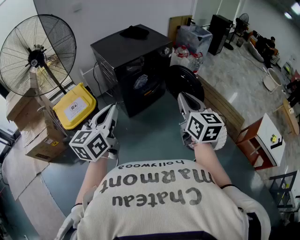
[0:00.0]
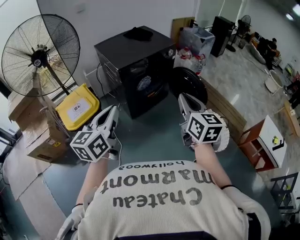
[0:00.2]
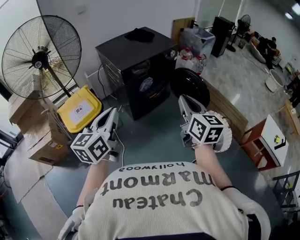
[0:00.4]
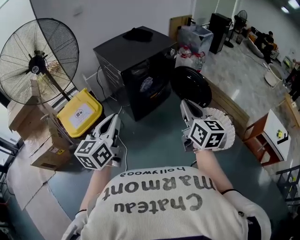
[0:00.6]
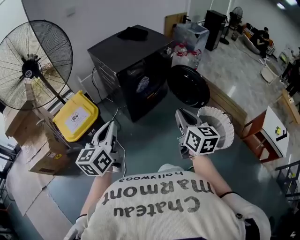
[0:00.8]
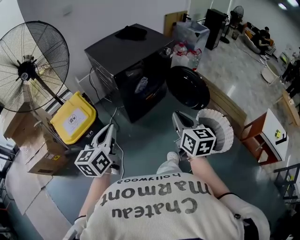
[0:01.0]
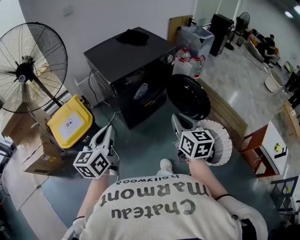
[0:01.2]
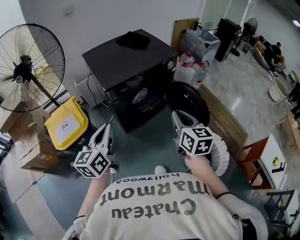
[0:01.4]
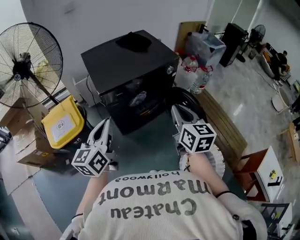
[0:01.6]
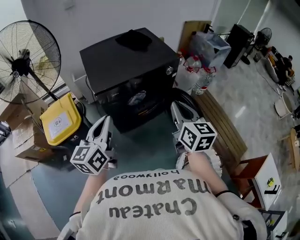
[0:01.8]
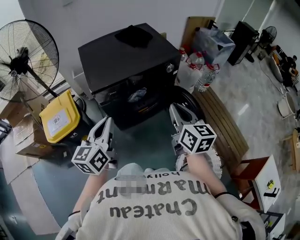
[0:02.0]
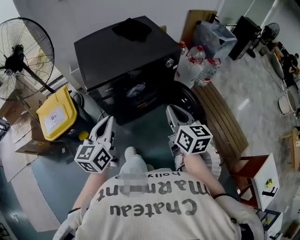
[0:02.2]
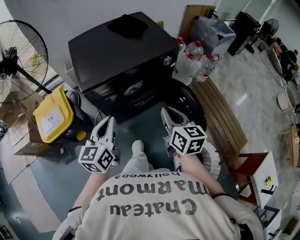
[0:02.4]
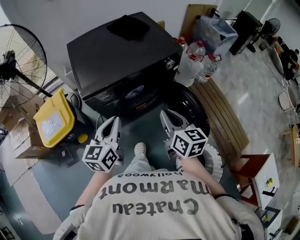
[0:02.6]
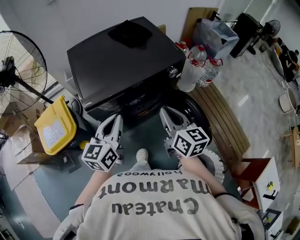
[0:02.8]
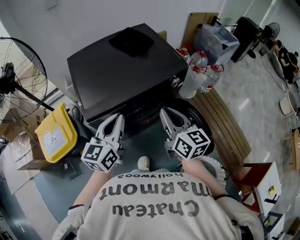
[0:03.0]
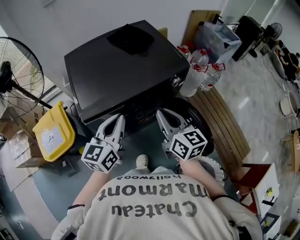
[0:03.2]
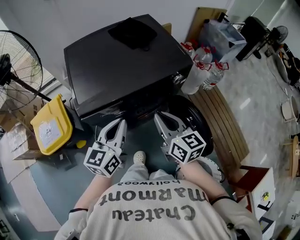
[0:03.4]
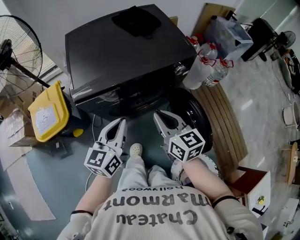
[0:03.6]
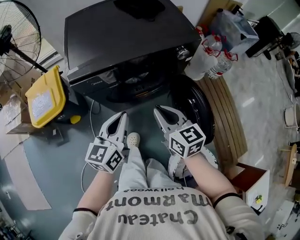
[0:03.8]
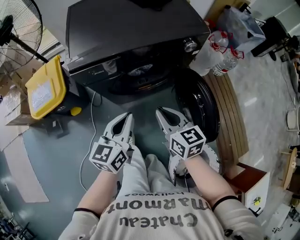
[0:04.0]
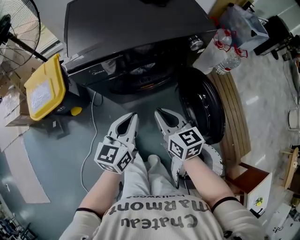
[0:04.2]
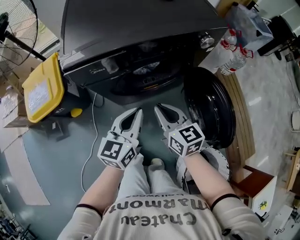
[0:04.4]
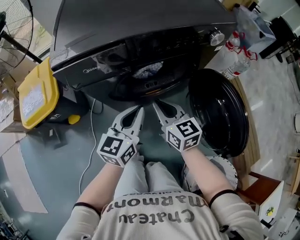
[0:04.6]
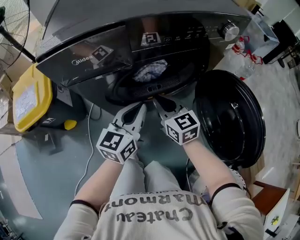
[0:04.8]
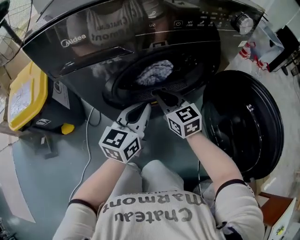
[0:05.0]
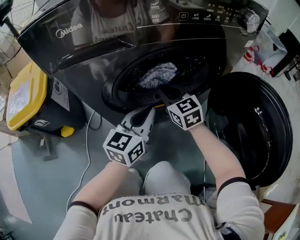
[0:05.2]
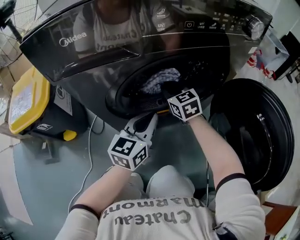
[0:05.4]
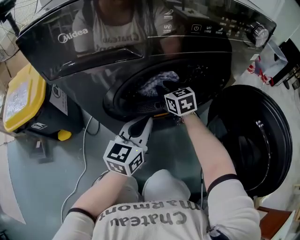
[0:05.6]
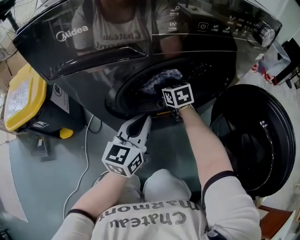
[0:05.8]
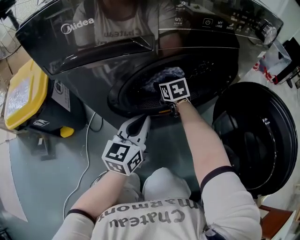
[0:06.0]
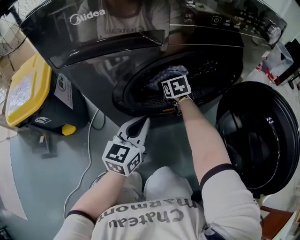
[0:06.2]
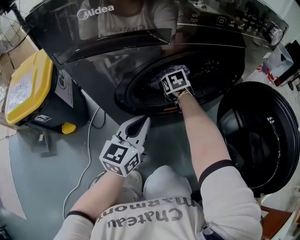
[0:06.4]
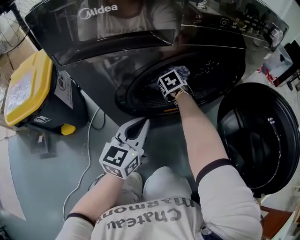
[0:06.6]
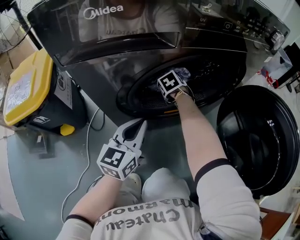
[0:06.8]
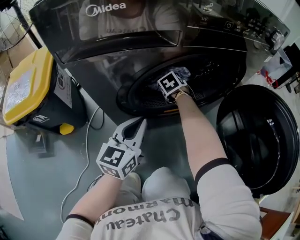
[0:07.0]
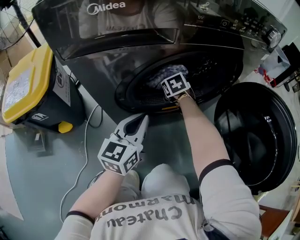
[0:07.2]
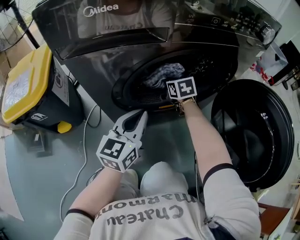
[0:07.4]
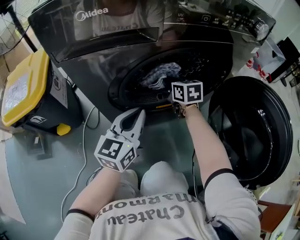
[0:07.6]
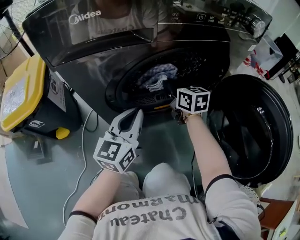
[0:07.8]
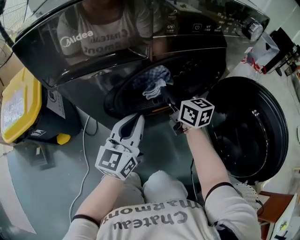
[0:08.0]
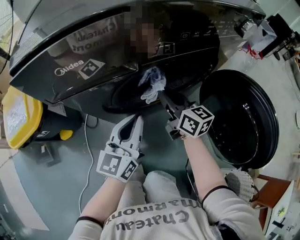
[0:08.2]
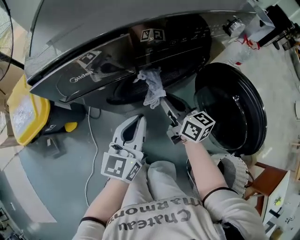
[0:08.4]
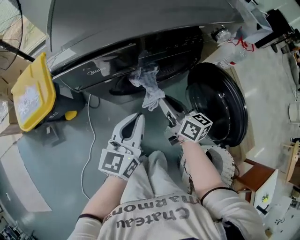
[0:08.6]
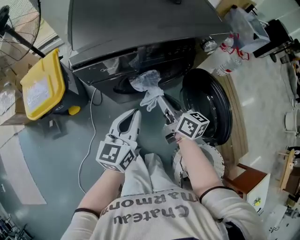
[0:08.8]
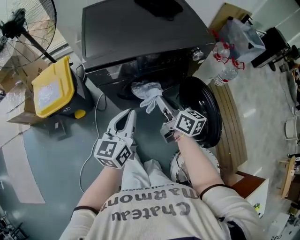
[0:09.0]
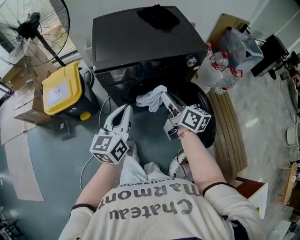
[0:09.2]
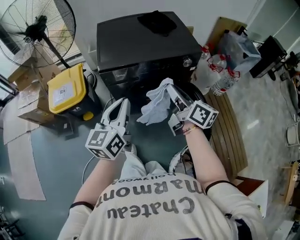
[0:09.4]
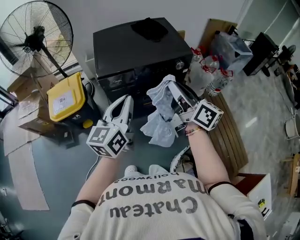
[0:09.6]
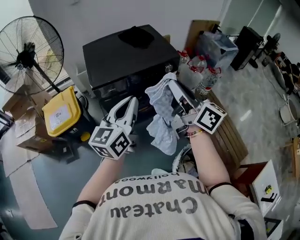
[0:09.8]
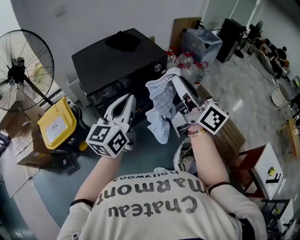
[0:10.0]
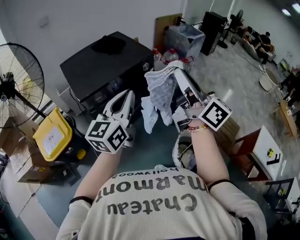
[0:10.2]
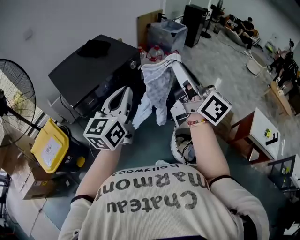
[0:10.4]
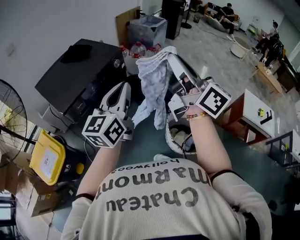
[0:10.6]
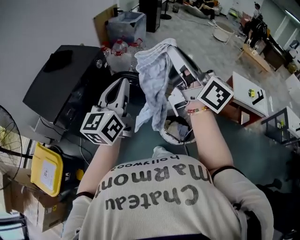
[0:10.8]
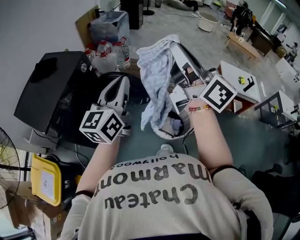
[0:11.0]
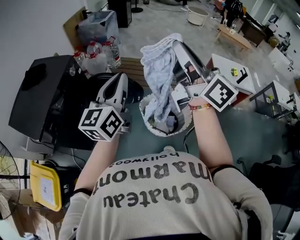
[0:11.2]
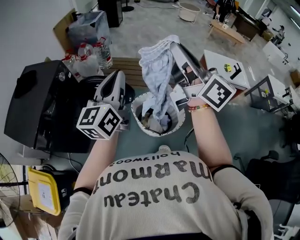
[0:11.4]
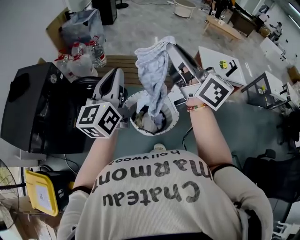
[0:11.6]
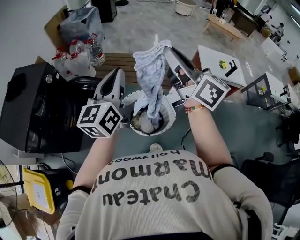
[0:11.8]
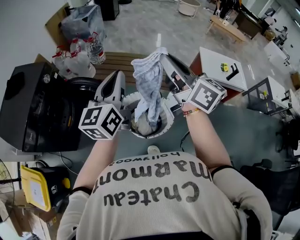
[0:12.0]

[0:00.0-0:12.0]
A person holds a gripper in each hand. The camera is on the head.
0:00.0 to 0:01.6: Both grippers travel together forward, about 25 cm.
0:01.6 to 0:03.0: The right gripper travels forward by about 20 cm; the left gripper heads forward and to the right, covering about 20 cm.
0:03.0 to 0:04.4: The two grippers go some 25 cm downward. The right gripper rotates approximately 20 degrees.
0:04.4 to 0:06.0: The left gripper is displaced downward and forward by roughly 30 cm. Meanwhile the right gripper travels downward and forward by roughly 40 cm, swivels approximately 20 degrees, and opens up.
0:06.0 to 0:07.6: The right gripper goes some 5 cm upward, and closes up.
0:07.6 to 0:09.0: The left gripper shifts some 30 cm upward, while the right gripper moves upward and backward, some 40 cm, and swivels roughly 40 degrees.
0:09.0 to 0:10.4: The right gripper goes some 40 cm upward, and tips its fingers upward by about 40 degrees. Meanwhile the left gripper shifts roughly 25 cm upward, and swivels some 40 degrees.
0:10.4 to 0:12.0: The left gripper shifts by roughly 40 cm, and turns by some 20 degrees. Meanwhile the right gripper changes place by roughly 40 cm, and swivels approximately 30 degrees.

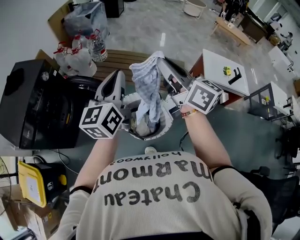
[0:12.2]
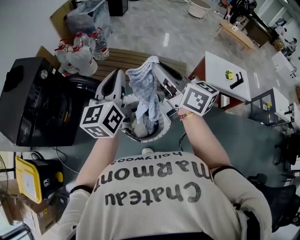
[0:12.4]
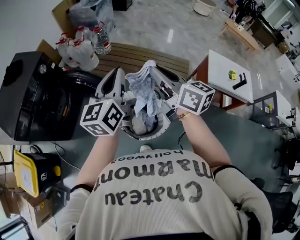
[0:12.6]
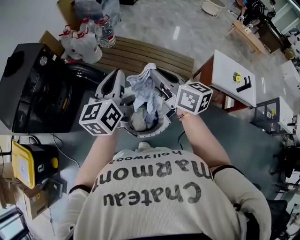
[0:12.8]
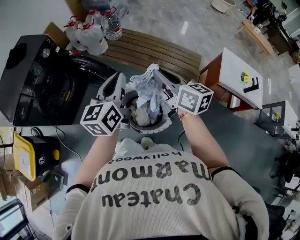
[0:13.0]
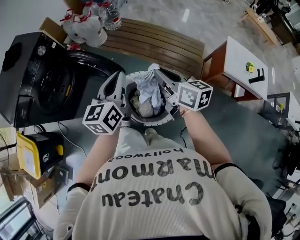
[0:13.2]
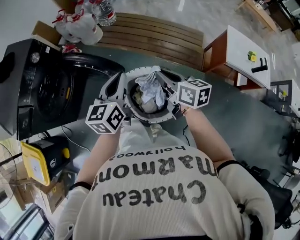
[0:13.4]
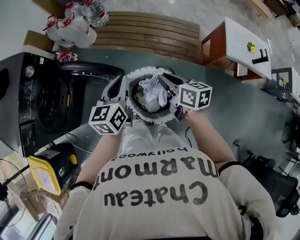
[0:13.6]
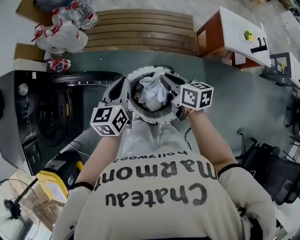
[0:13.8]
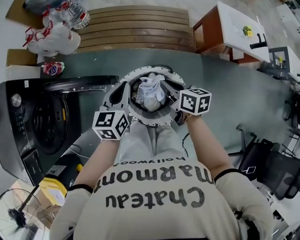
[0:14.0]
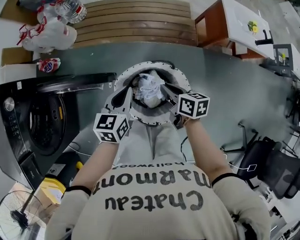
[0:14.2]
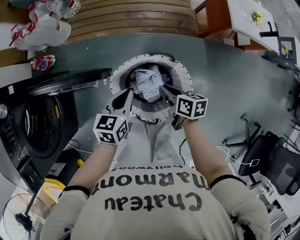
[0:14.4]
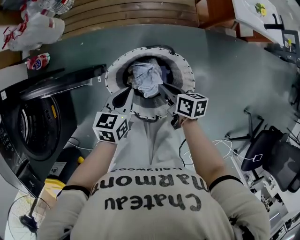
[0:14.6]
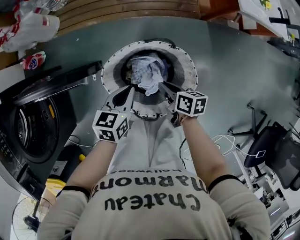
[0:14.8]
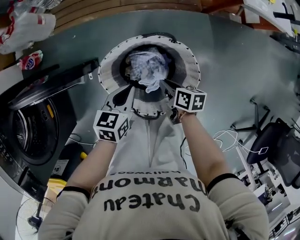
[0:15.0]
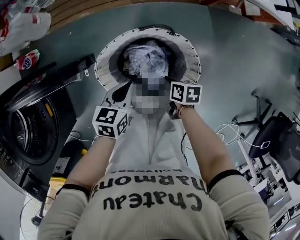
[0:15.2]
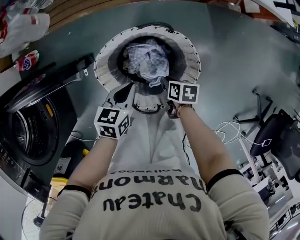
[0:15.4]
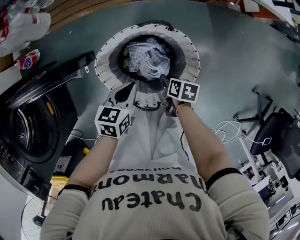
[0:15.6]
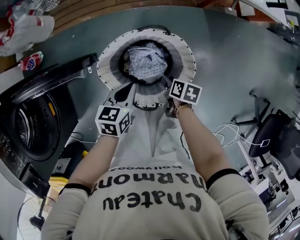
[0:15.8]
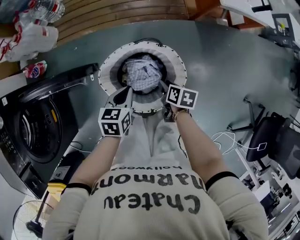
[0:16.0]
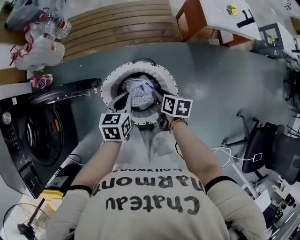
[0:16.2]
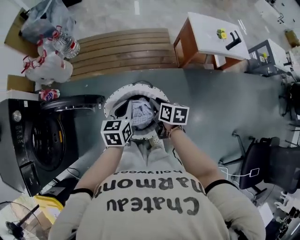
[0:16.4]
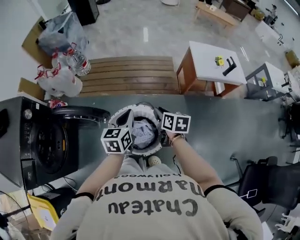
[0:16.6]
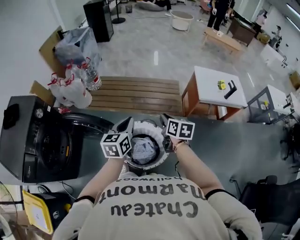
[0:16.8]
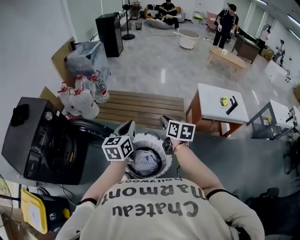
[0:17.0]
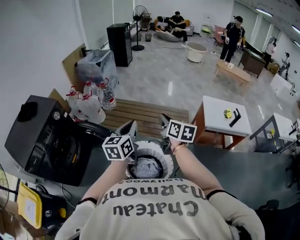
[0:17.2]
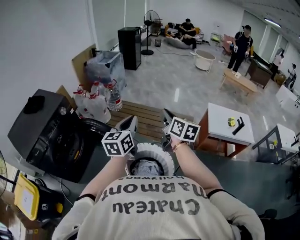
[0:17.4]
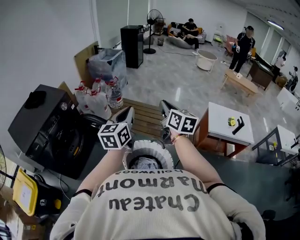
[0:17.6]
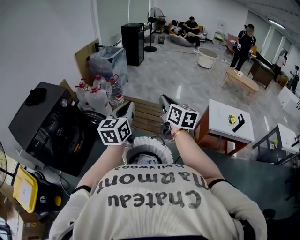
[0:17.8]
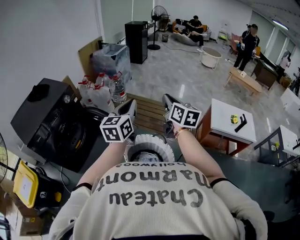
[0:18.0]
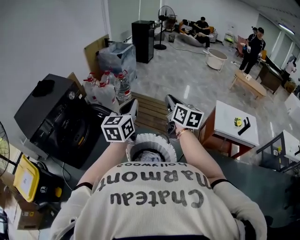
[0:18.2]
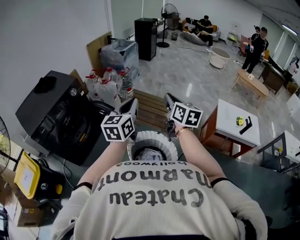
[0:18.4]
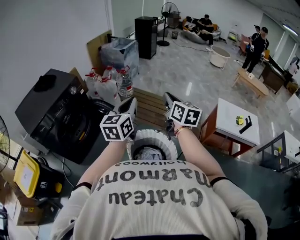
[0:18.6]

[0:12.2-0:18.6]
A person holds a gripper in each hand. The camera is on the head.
0:12.2 to 0:13.8: The left gripper moves downward and forward, roughly 30 cm, and swivels some 30 degrees. Meanwhile the right gripper moves downward, roughly 35 cm, and points its fingers about 40 degrees further downward.
0:13.8 to 0:15.4: The grippers both shift downward by about 30 cm. The right gripper tips its fingers downward by about 30 degrees. The left gripper changes its angle by approximately 40 degrees.
0:15.4 to 0:17.0: The two grippers go roughly 40 cm upward. The right gripper tilts its fingers approximately 40 degrees upward, and opens and closes again. The left gripper points its fingers some 30 degrees further upward.
0:17.0 to 0:18.6: Both grippers travel together upward and to the left, about 15 cm. The left gripper swivels approximately 20 degrees; the right gripper swivels approximately 20 degrees.

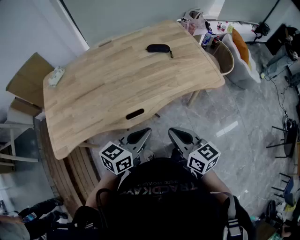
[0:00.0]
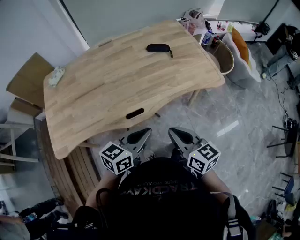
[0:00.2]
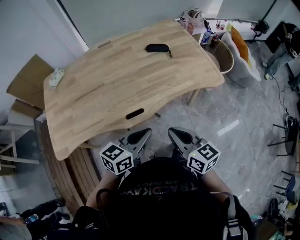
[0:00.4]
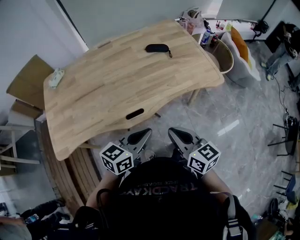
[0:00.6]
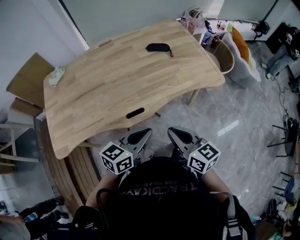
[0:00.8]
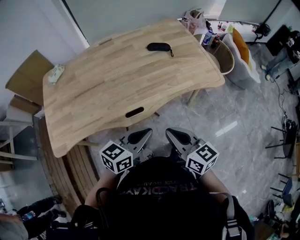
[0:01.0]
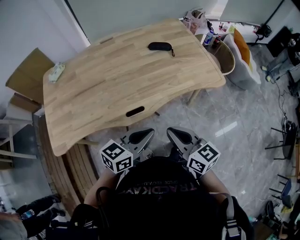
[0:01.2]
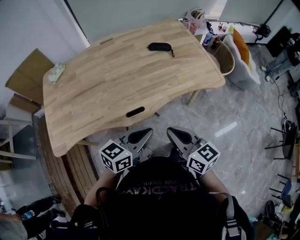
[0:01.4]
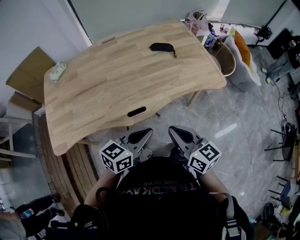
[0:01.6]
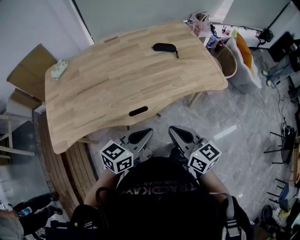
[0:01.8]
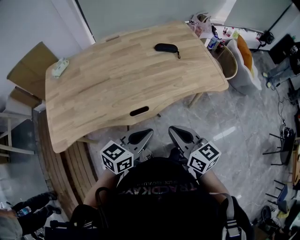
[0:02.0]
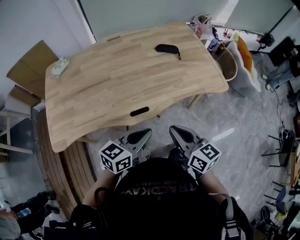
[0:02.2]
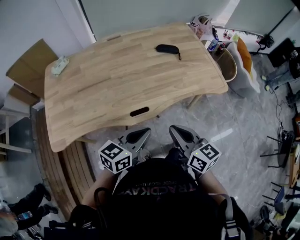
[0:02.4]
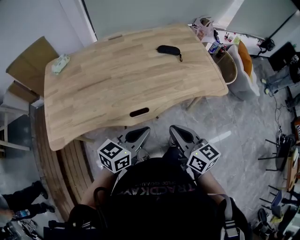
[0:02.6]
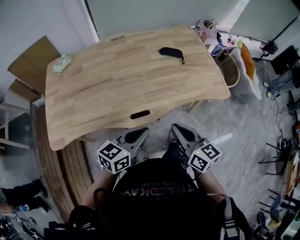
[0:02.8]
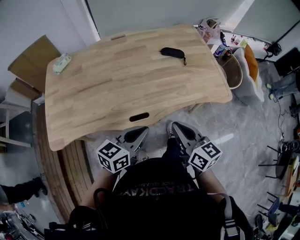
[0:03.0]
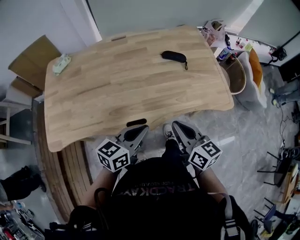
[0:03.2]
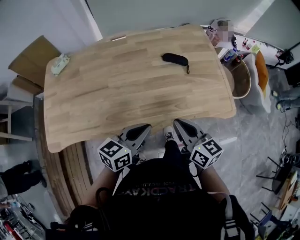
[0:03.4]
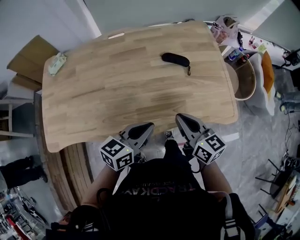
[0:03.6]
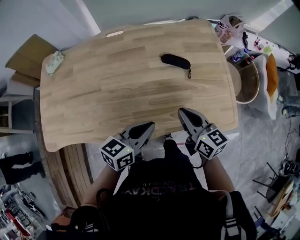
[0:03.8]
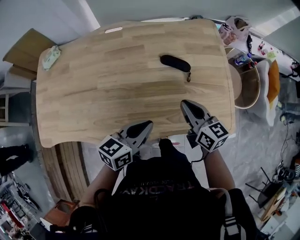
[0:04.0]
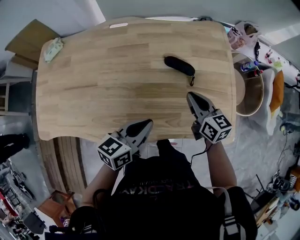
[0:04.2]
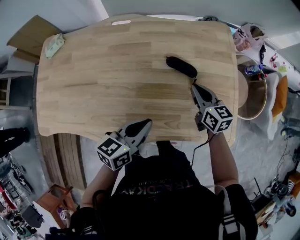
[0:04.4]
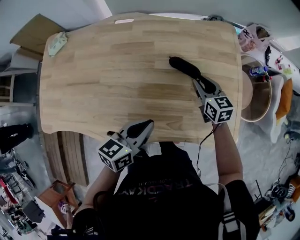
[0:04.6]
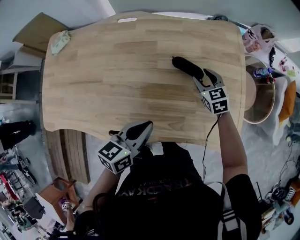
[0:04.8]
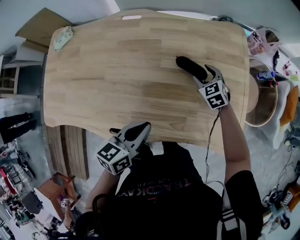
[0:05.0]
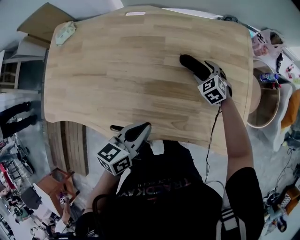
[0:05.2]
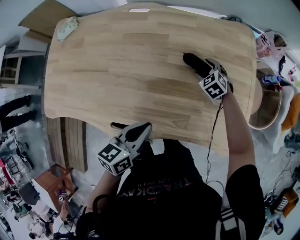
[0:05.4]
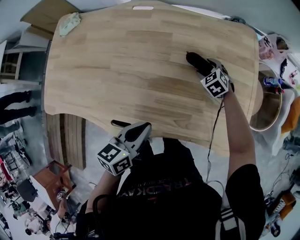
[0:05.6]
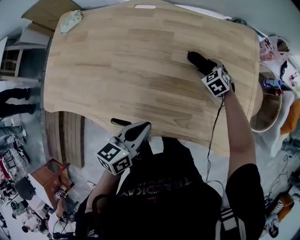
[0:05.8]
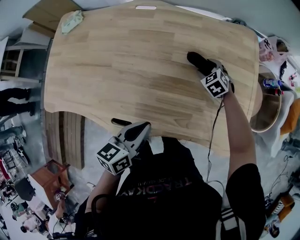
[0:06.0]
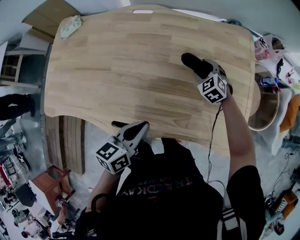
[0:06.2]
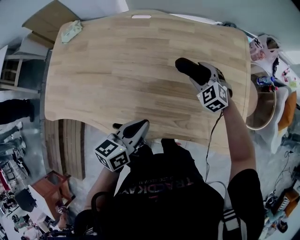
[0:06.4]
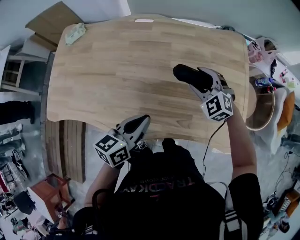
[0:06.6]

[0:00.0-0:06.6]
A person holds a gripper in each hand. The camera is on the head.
0:00.0 to 0:01.6: There are only small adjustments of the grippers.
0:01.6 to 0:03.2: The two grippers go roughly 10 cm forward.
0:03.2 to 0:05.0: The right gripper is displaced forward and downward by approximately 50 cm, rolls counterclockwise, seen from behind, by some 50 degrees, and opens its fingers, while the left gripper goes roughly 20 cm forward and to the right, and turns by some 30 degrees.
0:05.0 to 0:06.6: The right gripper is displaced upward, to the left and backward by roughly 15 cm, and swivels roughly 30 degrees. Meanwhile the left gripper ends up approximately 5 cm from where it was.
